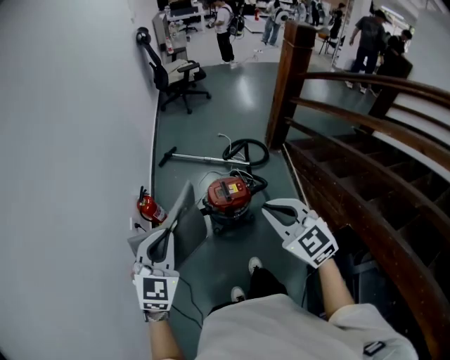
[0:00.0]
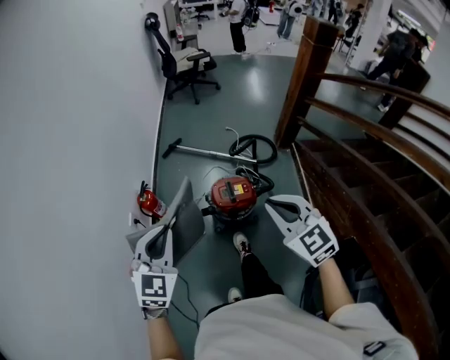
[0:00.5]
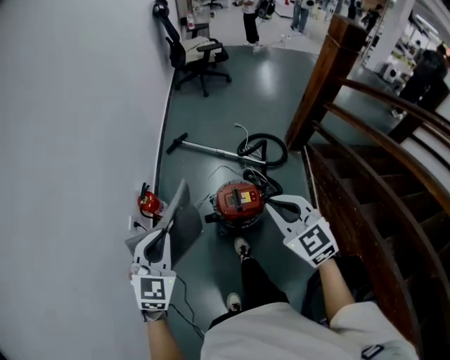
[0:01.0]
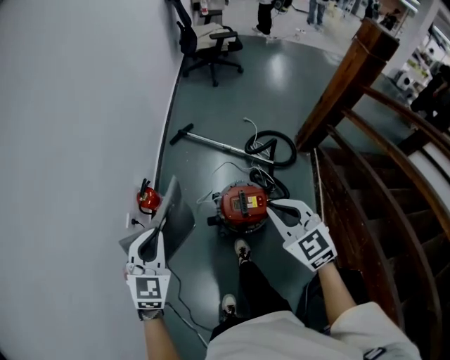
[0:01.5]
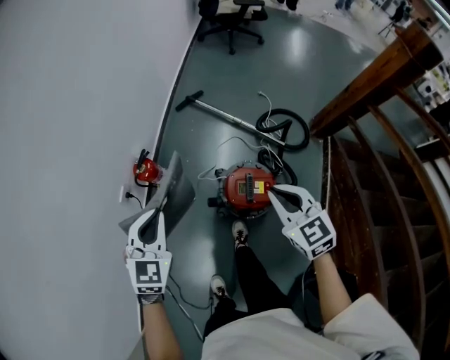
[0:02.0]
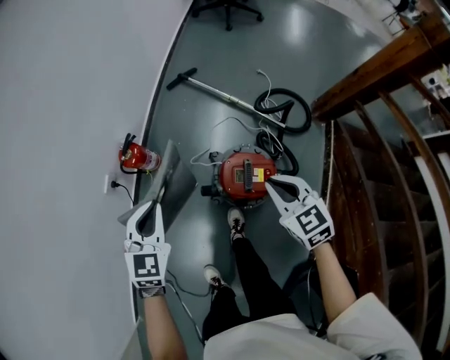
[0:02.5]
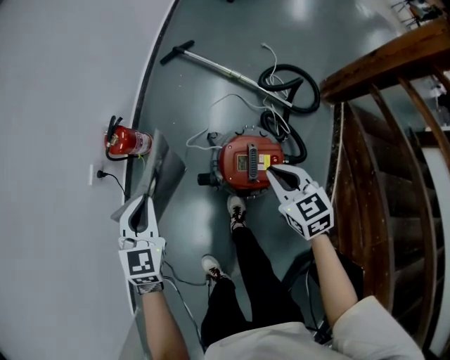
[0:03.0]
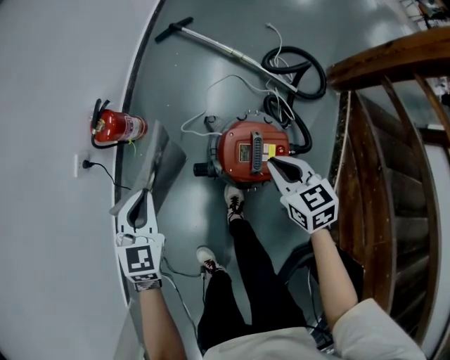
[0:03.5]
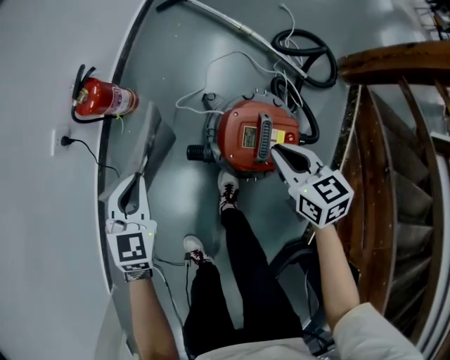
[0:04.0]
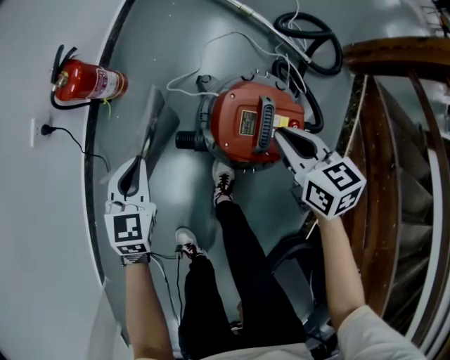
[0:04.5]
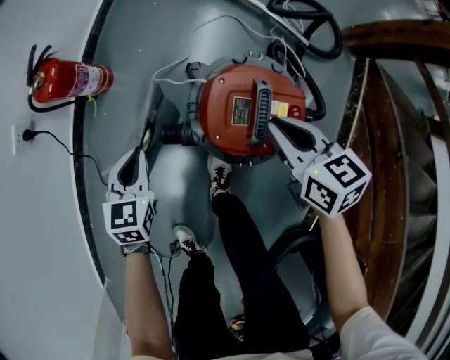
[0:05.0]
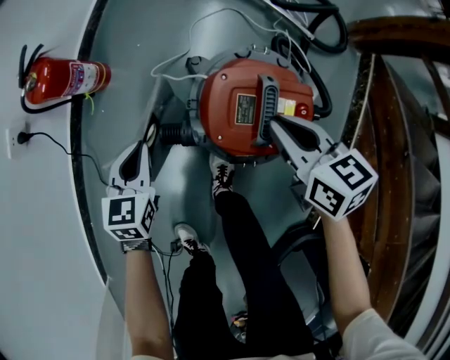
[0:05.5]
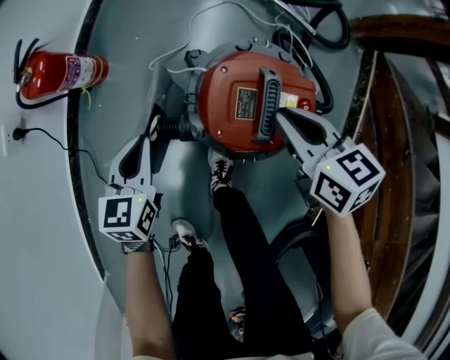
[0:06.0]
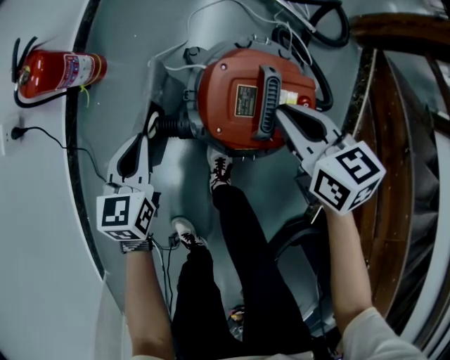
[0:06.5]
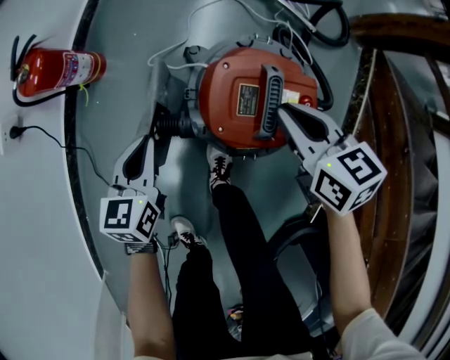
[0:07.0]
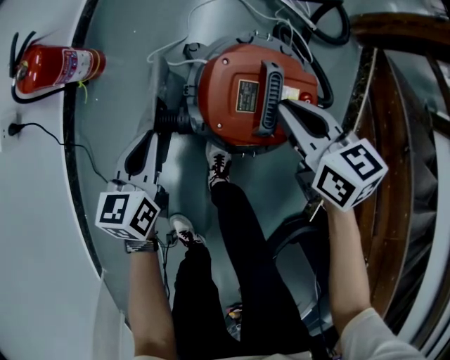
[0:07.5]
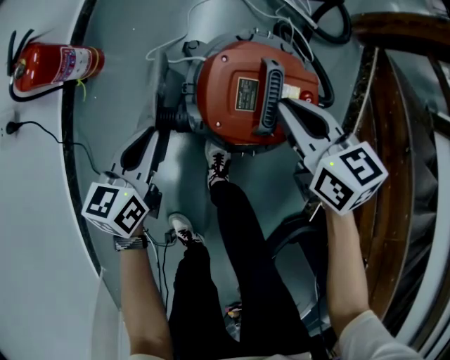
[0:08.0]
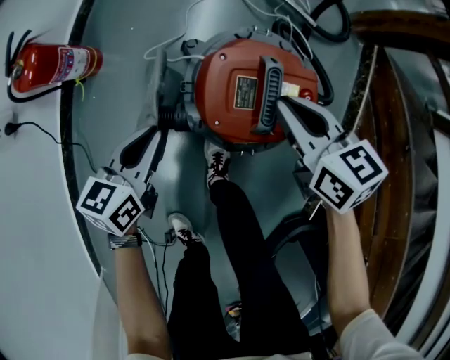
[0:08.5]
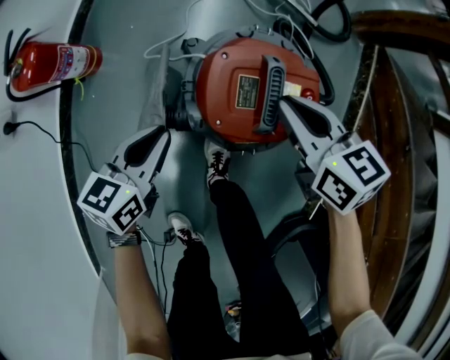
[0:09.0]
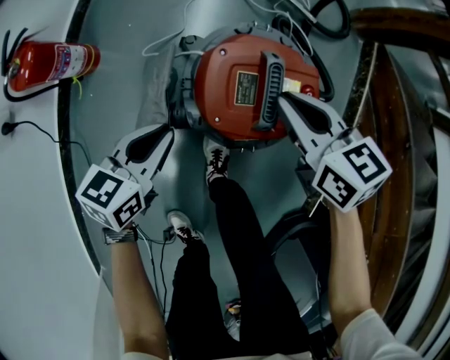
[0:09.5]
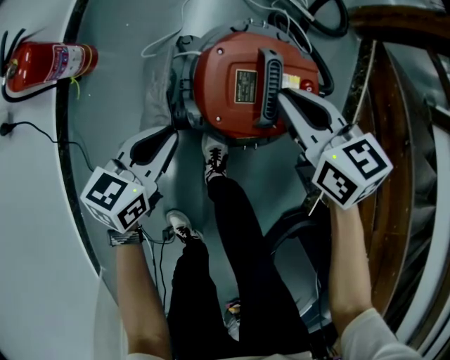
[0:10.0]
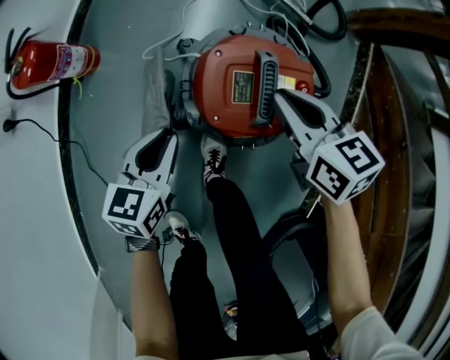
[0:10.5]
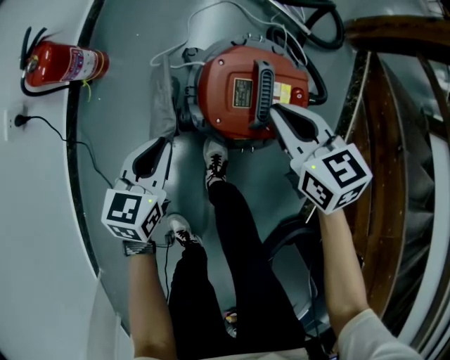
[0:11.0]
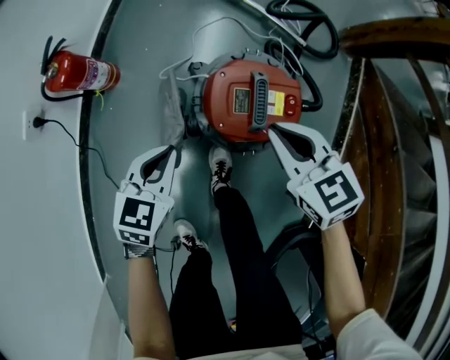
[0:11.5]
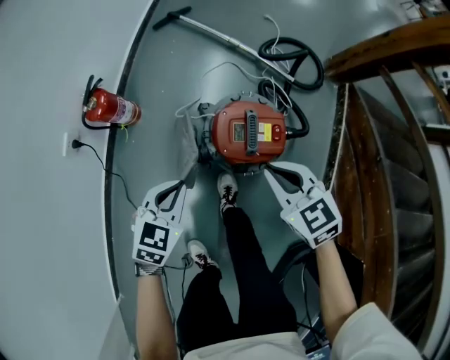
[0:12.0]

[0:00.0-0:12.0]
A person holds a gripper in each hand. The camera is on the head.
0:00.0 to 0:02.0: The two grippers go some 35 cm forward and downward. The left gripper rotates some 20 degrees.
0:02.0 to 0:04.0: The grippers both shift downward by roughly 35 cm. The right gripper rotates about 30 degrees.
0:04.0 to 0:06.0: The left gripper travels downward and to the right by roughly 15 cm, and swivels some 20 degrees. Meanwhile the right gripper is displaced downward by about 10 cm.
0:06.0 to 0:08.0: The grippers move only a little.
0:10.0 to 0:12.0: The right gripper shifts roughly 20 cm upward and backward, and turns by approximately 20 degrees, while the left gripper heads upward, covering roughly 15 cm, and changes its angle by some 30 degrees.

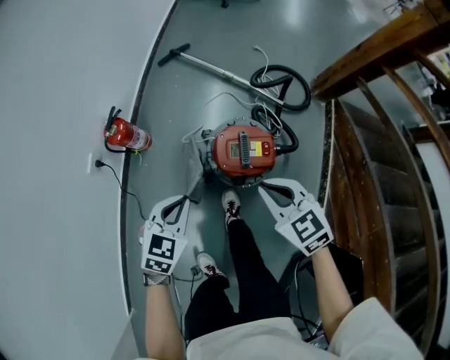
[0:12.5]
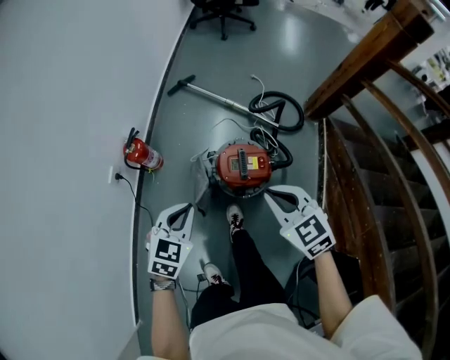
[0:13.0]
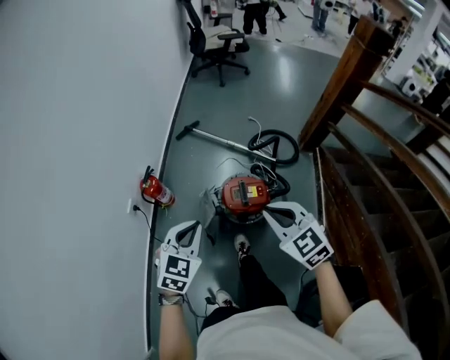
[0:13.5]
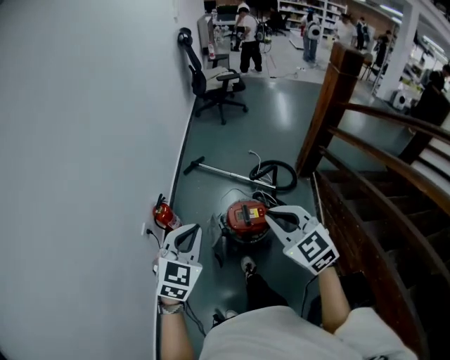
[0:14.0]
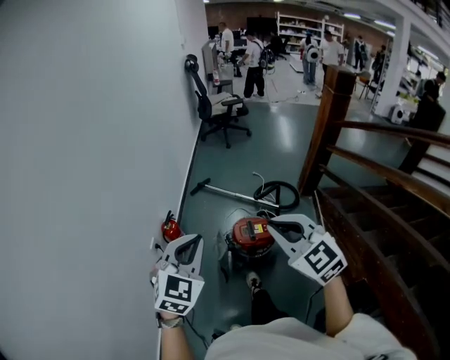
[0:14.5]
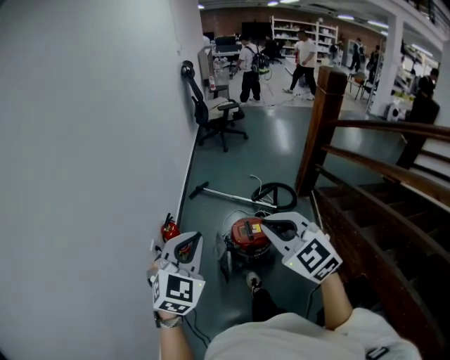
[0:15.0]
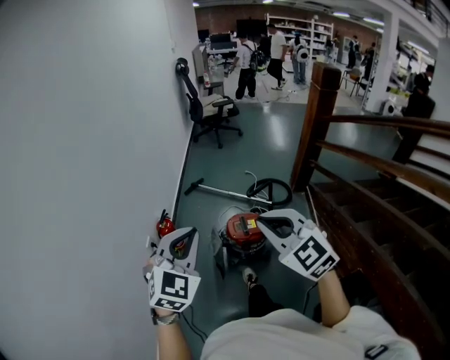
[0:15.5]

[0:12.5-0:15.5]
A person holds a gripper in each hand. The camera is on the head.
0:12.5 to 0:14.0: The grippers both shift upward by some 35 cm. The right gripper rotates approximately 20 degrees; the left gripper turns by roughly 30 degrees.
0:14.0 to 0:15.5: The right gripper goes approximately 15 cm backward and upward. The left gripper shifts about 15 cm upward and backward.

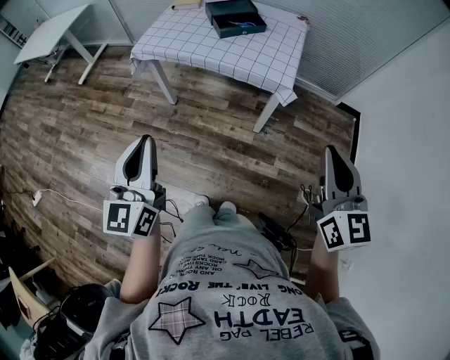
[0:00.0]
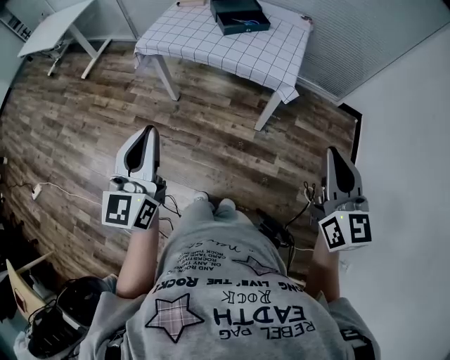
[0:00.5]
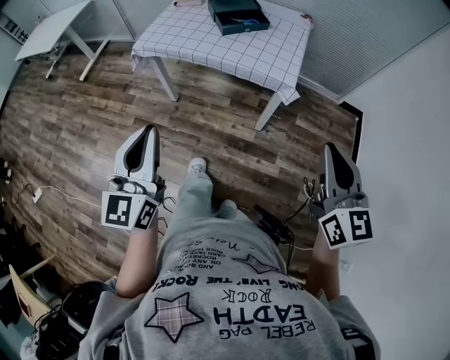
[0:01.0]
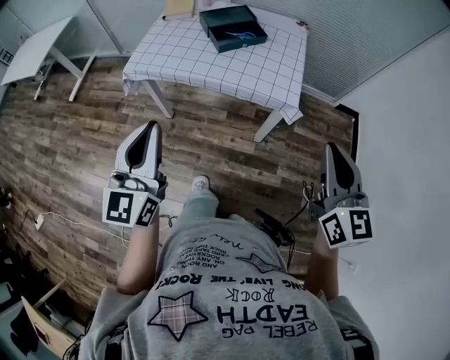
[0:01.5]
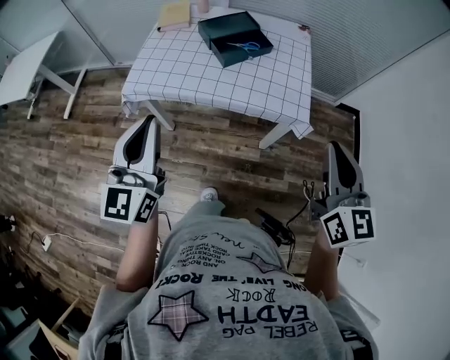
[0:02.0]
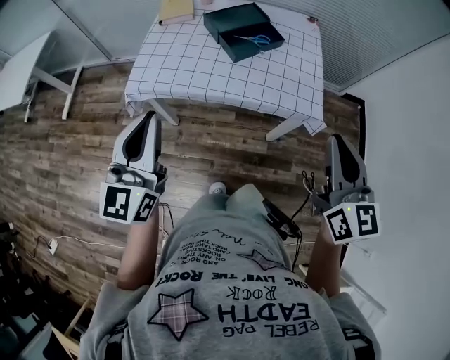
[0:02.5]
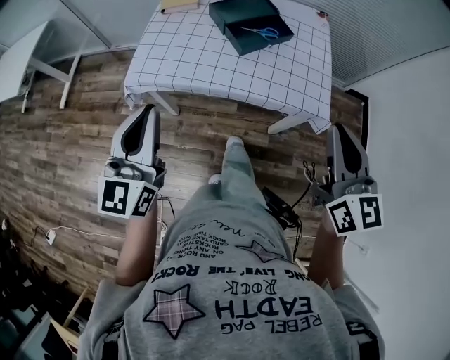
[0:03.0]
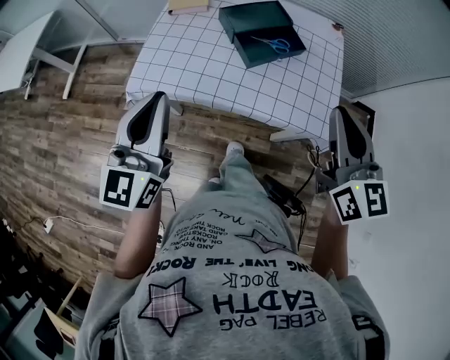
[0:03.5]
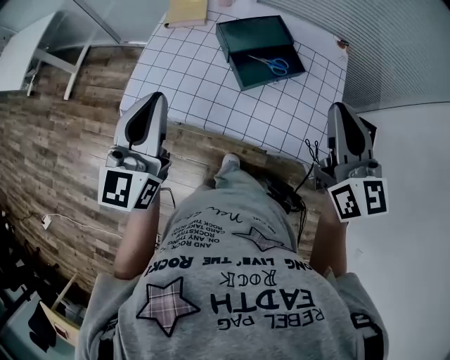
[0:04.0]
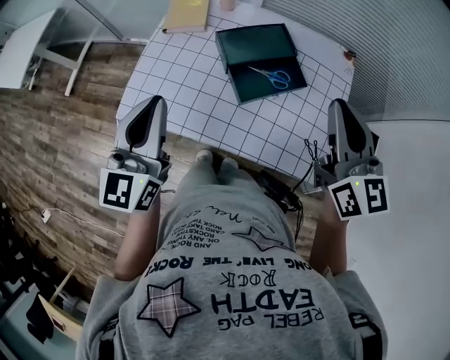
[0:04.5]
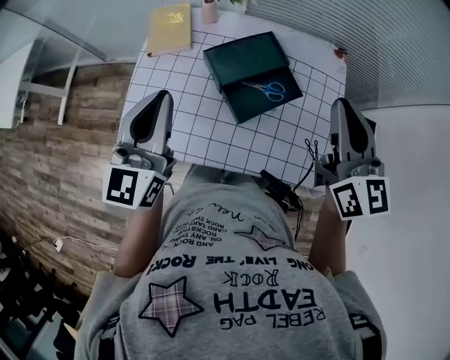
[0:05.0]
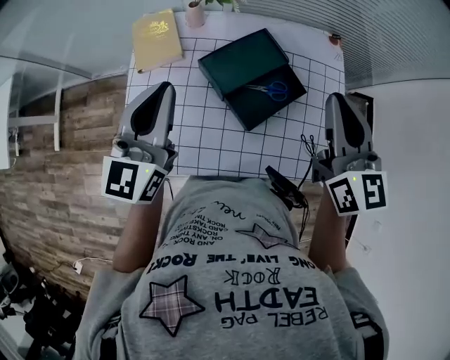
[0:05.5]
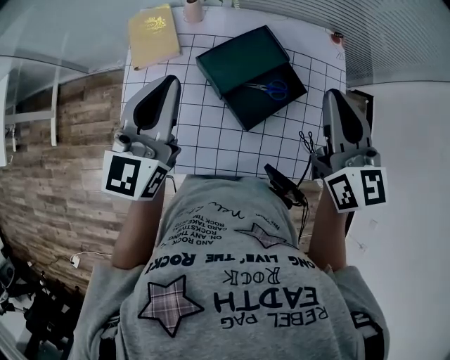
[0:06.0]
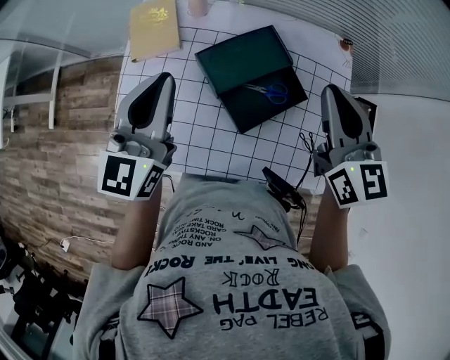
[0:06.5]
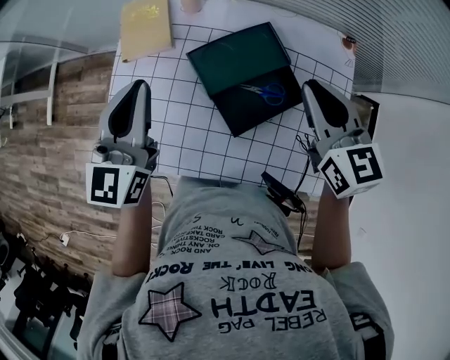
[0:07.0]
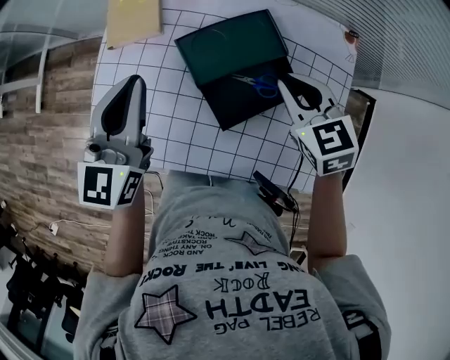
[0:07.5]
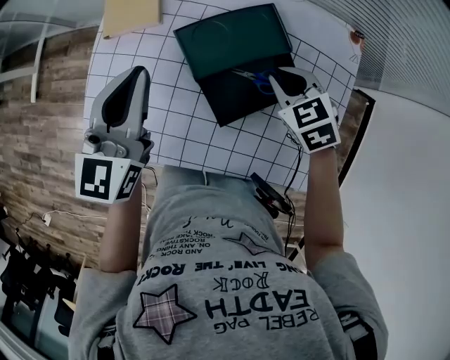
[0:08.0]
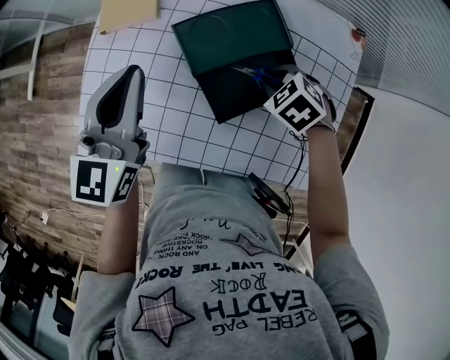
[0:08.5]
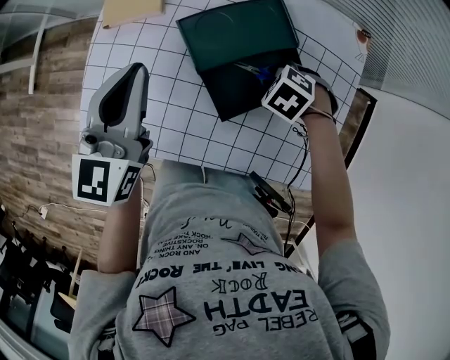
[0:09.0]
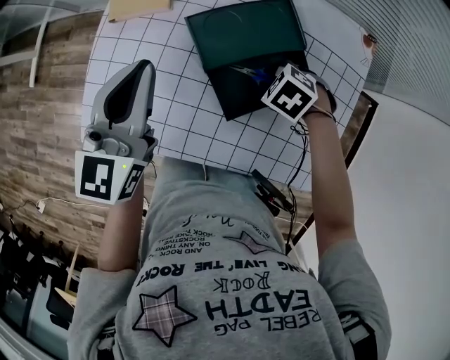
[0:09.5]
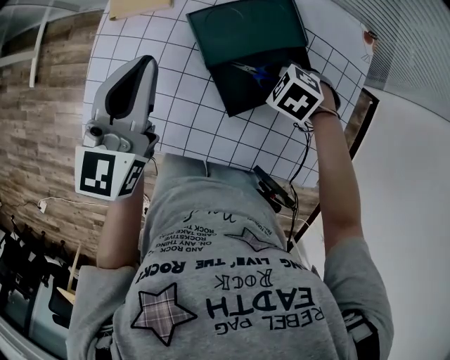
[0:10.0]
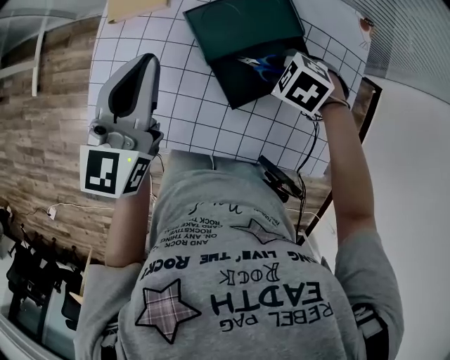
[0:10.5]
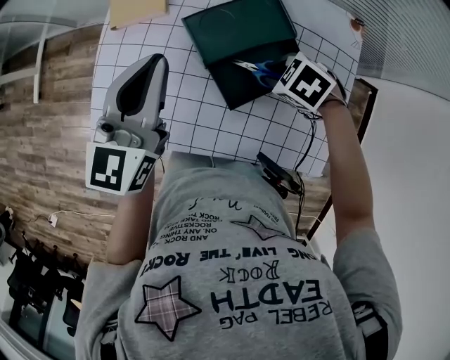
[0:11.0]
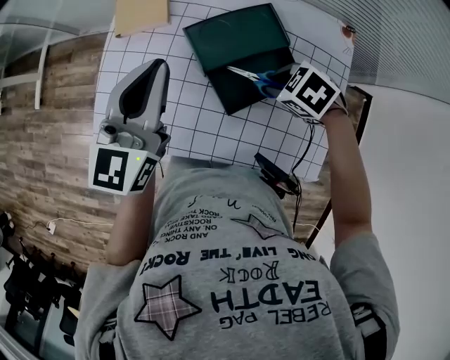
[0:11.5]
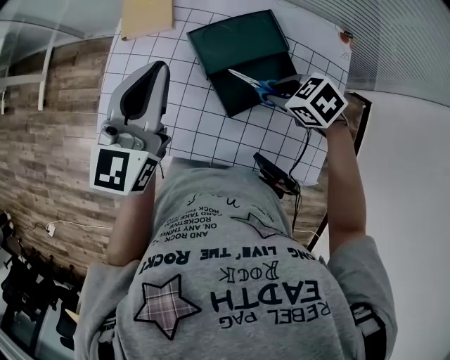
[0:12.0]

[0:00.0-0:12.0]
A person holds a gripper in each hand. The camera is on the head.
0:00.0 to 0:02.0: The left gripper shifts about 25 cm forward. The right gripper goes roughly 20 cm forward and to the left.
0:02.0 to 0:04.0: The two grippers go about 25 cm forward.
0:04.0 to 0:06.0: Both grippers move forward, about 20 cm.
0:06.0 to 0:08.0: The right gripper is displaced downward by about 25 cm, and angles its fingers downward, by approximately 40 degrees. Meanwhile the left gripper moves downward, roughly 10 cm.
0:08.0 to 0:10.0: The right gripper goes roughly 10 cm downward, and rotates about 40 degrees.
0:10.0 to 0:12.0: The right gripper moves upward, about 10 cm, and changes its angle by approximately 20 degrees. The left gripper travels upward by some 5 cm.
